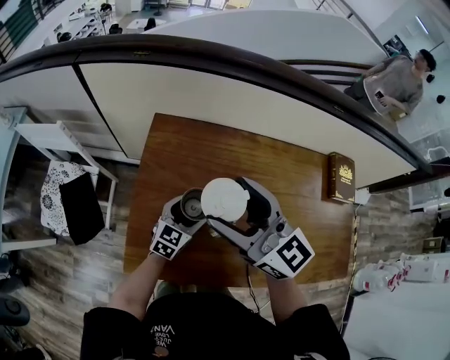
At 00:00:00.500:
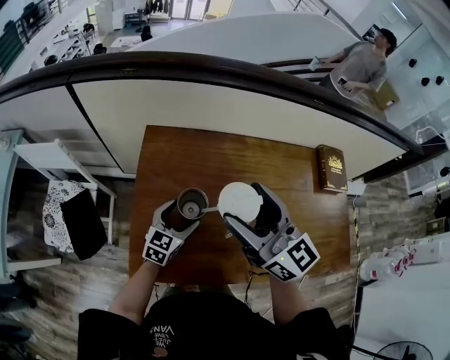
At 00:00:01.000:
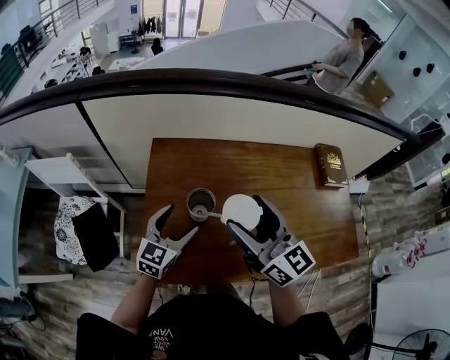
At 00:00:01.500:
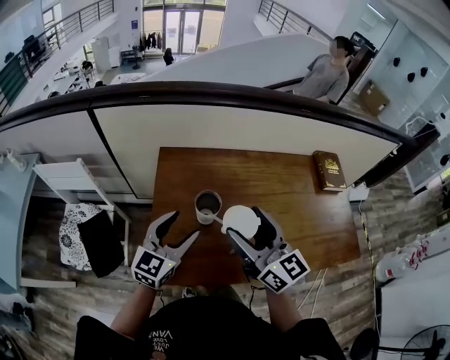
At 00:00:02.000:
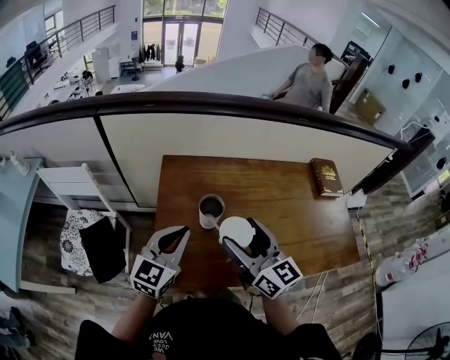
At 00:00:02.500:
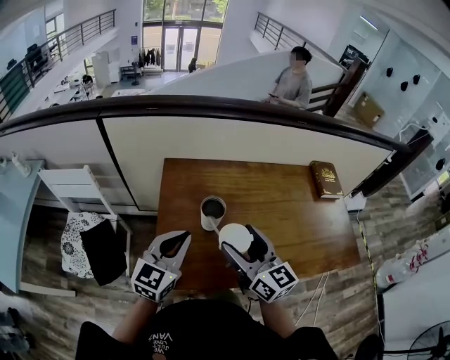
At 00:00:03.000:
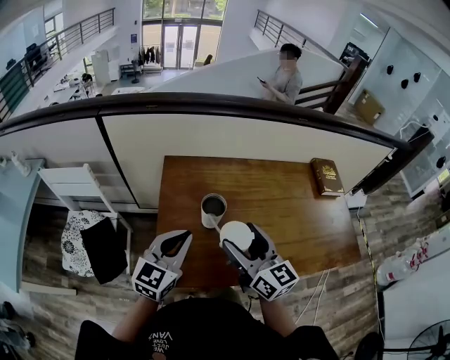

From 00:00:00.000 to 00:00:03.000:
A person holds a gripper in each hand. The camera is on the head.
From 00:00:00.000 to 00:00:01.500: The left gripper is displaced upward and backward by roughly 20 cm, while the right gripper heads backward, covering some 10 cm, and turns by about 20 degrees.
From 00:00:01.500 to 00:00:03.000: The right gripper moves roughly 5 cm. The left gripper closes its fingers.

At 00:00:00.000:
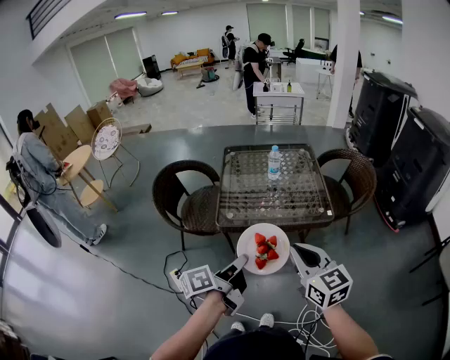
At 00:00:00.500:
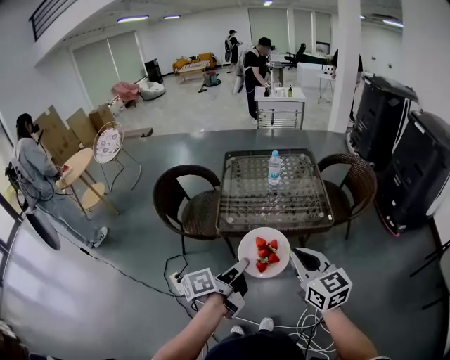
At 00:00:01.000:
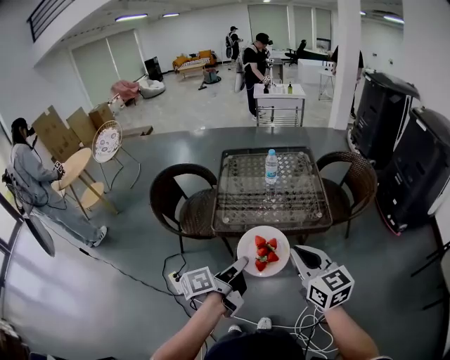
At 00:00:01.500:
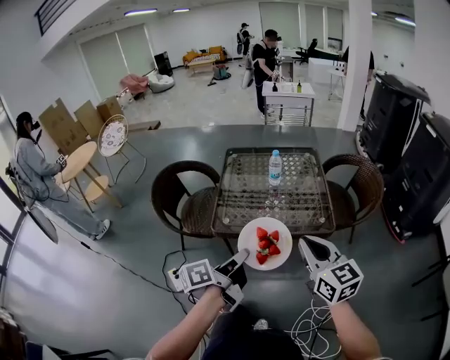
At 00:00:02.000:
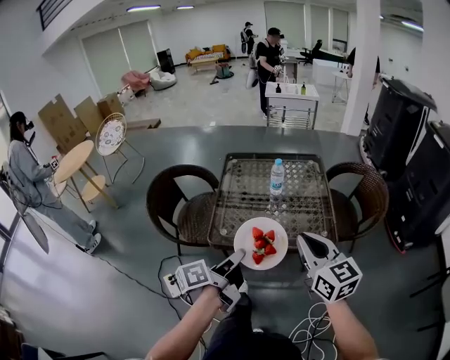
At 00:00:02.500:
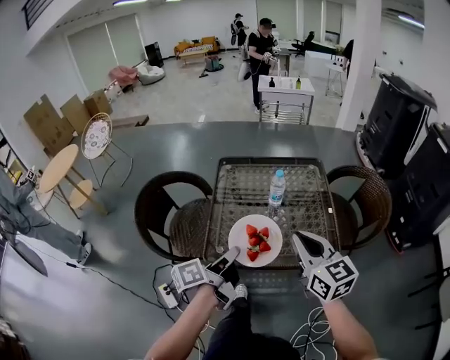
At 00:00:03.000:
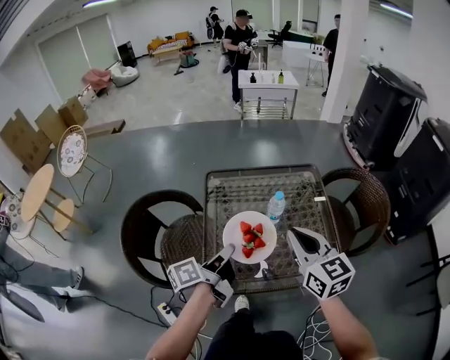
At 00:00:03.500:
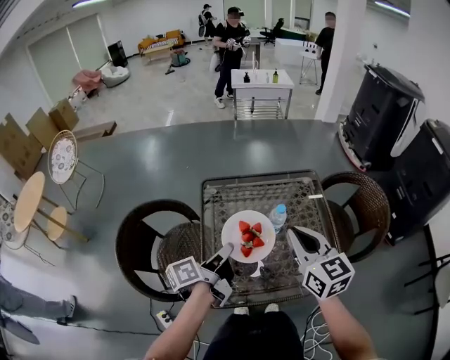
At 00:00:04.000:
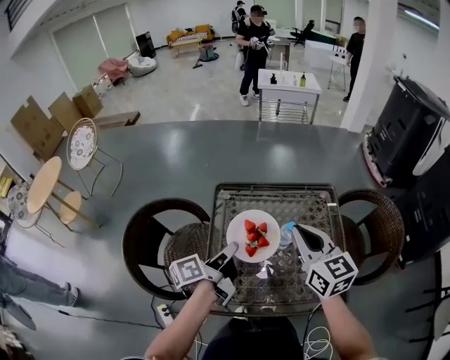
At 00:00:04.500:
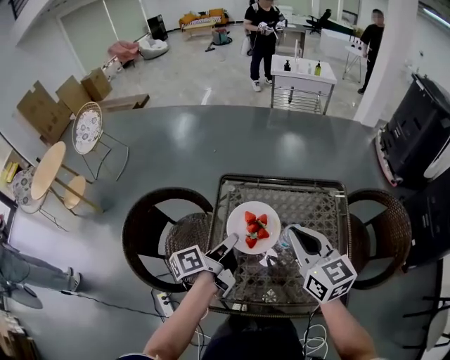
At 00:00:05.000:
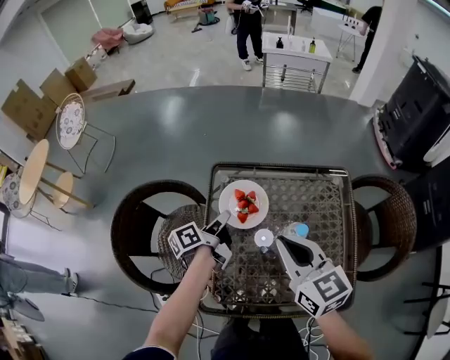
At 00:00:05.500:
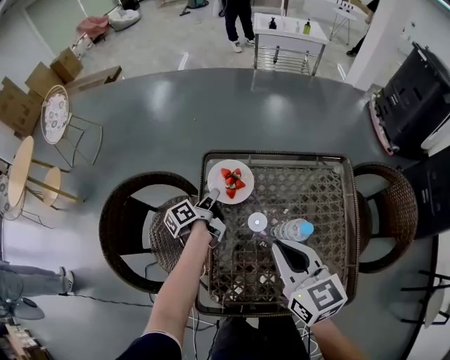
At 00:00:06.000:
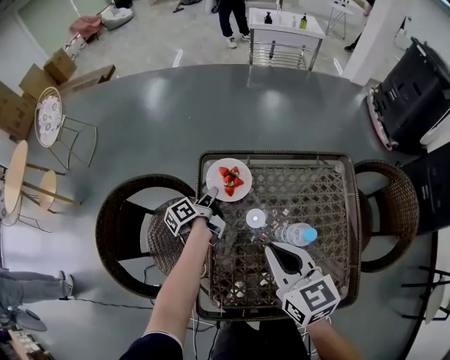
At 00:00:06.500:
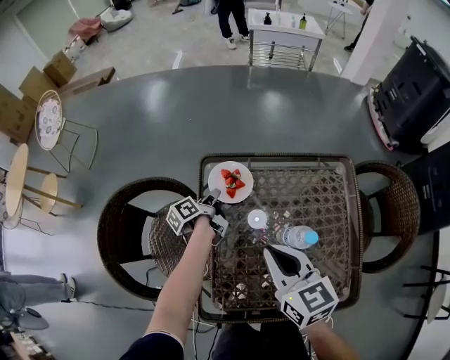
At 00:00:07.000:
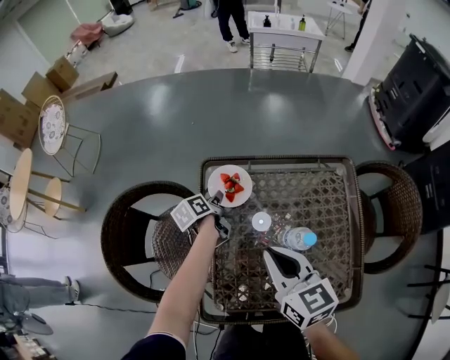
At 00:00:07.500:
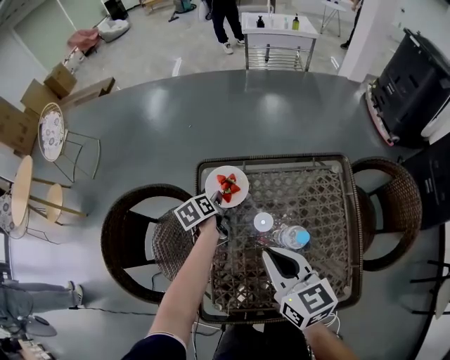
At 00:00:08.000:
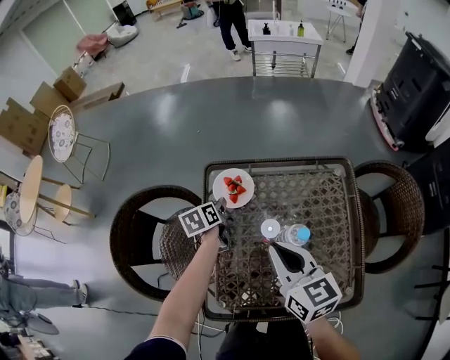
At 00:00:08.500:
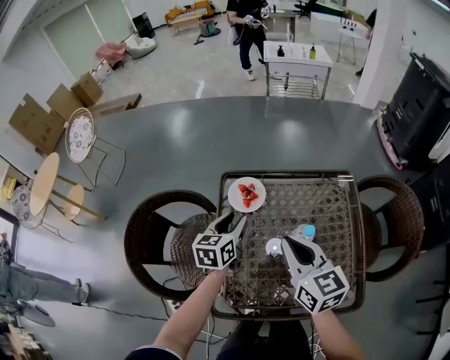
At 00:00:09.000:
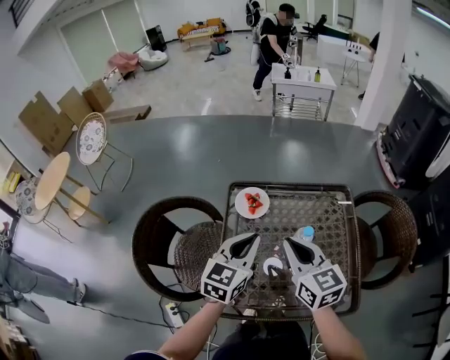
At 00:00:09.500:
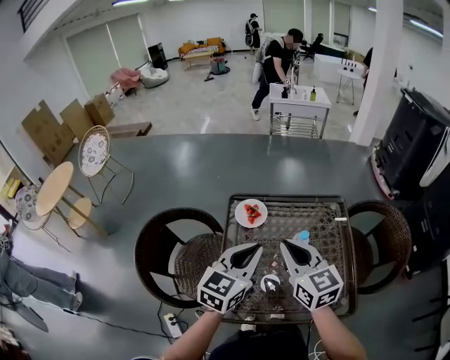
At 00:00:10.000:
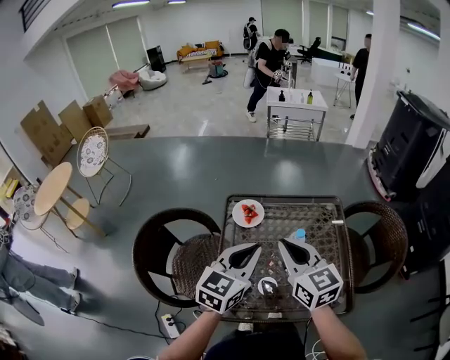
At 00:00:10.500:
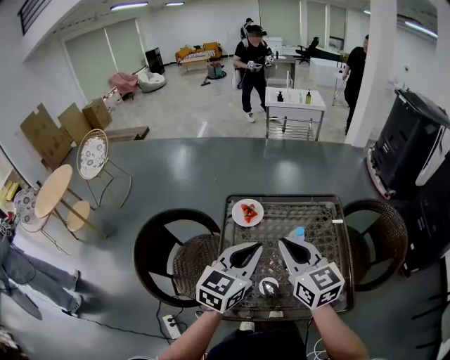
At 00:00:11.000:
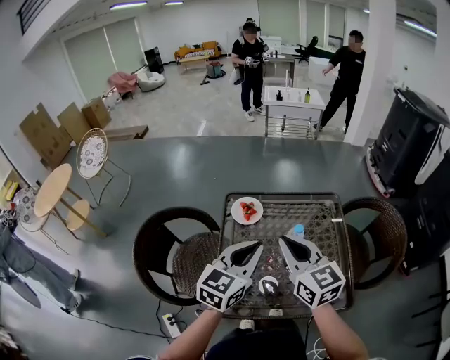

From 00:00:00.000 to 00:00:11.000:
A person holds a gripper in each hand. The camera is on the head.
From 00:00:00.000 to 00:00:02.000: The two grippers go roughly 15 cm forward.
From 00:00:02.000 to 00:00:03.500: Both grippers travel together forward, some 30 cm.
From 00:00:03.500 to 00:00:05.500: The left gripper shifts roughly 30 cm forward and downward, and turns by roughly 20 degrees; the right gripper goes about 15 cm downward, forward and to the left.
From 00:00:05.500 to 00:00:07.500: The left gripper rotates some 40 degrees, and opens up.
From 00:00:07.500 to 00:00:09.000: The left gripper travels upward and backward by about 35 cm, rolls clockwise, seen from behind, by about 50 degrees, and closes its fingers. Meanwhile the right gripper goes about 10 cm upward.
From 00:00:09.000 to 00:00:11.000: The right gripper heads upward, covering about 5 cm, while the left gripper shifts roughly 10 cm backward and upward.

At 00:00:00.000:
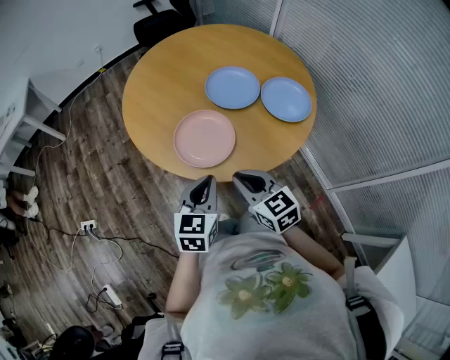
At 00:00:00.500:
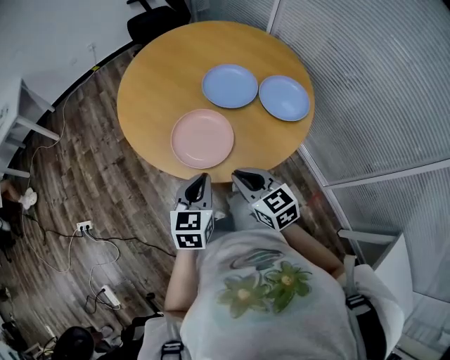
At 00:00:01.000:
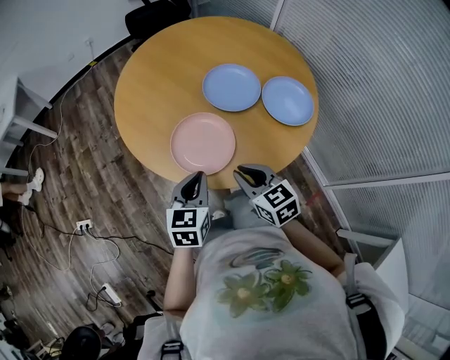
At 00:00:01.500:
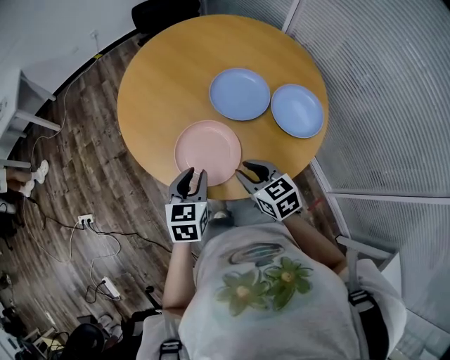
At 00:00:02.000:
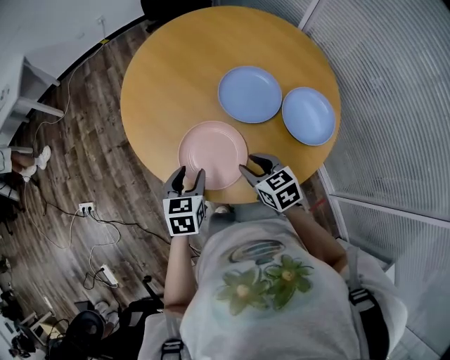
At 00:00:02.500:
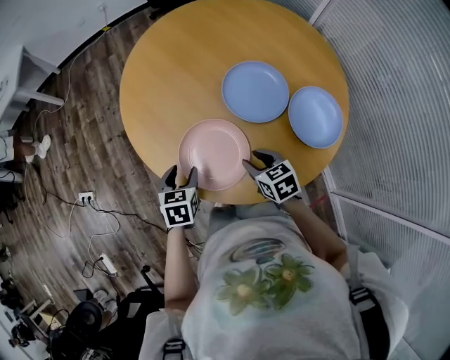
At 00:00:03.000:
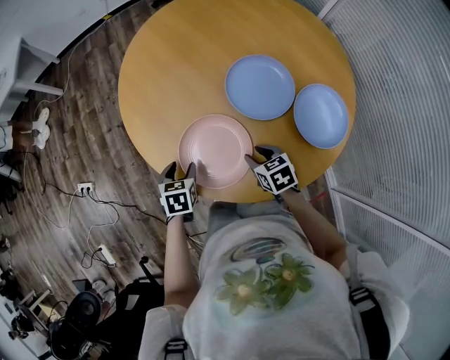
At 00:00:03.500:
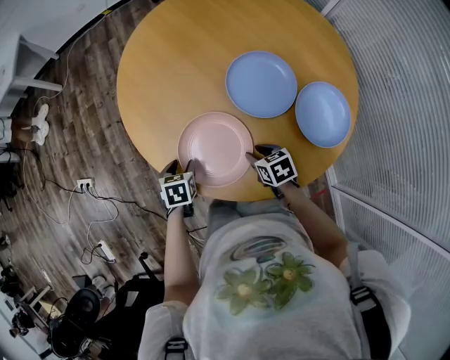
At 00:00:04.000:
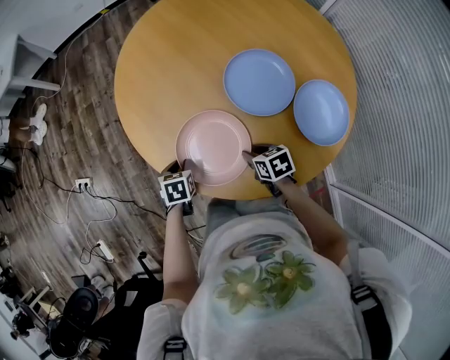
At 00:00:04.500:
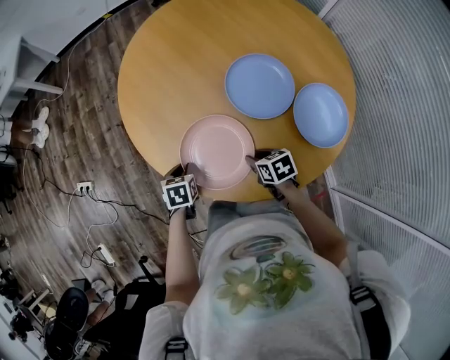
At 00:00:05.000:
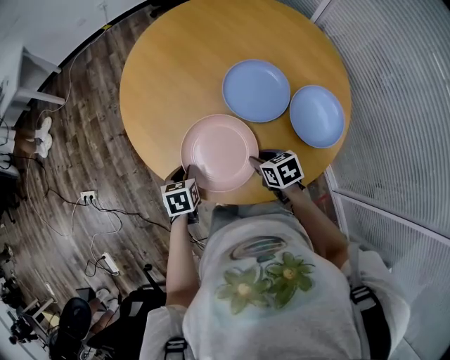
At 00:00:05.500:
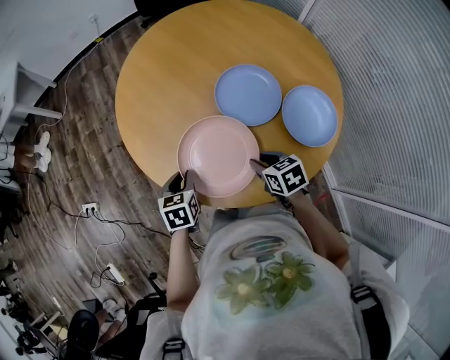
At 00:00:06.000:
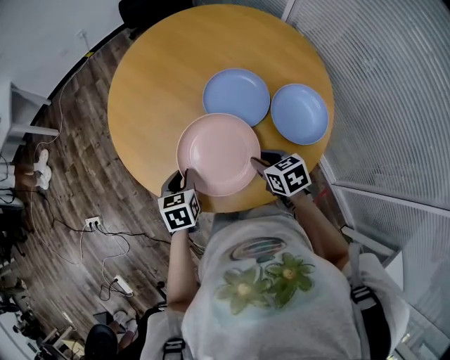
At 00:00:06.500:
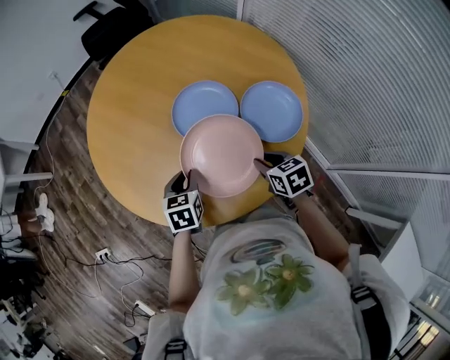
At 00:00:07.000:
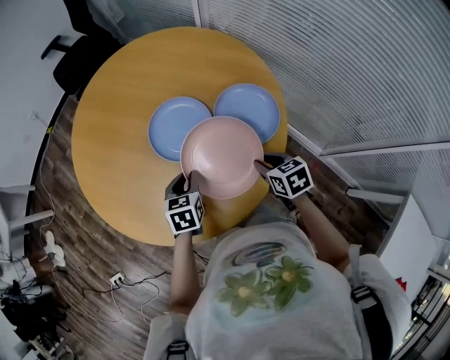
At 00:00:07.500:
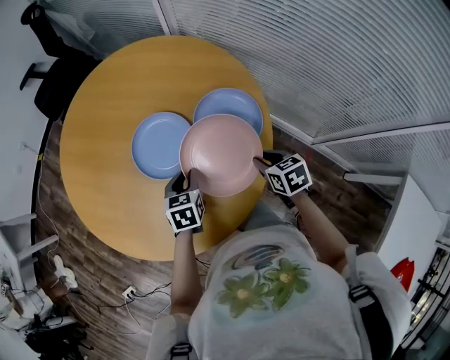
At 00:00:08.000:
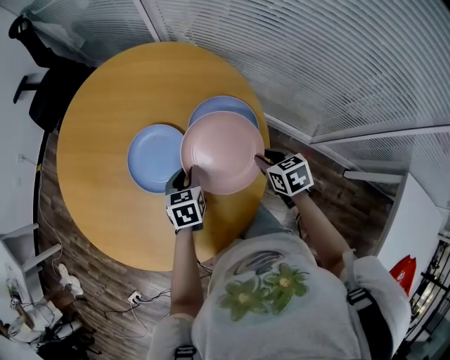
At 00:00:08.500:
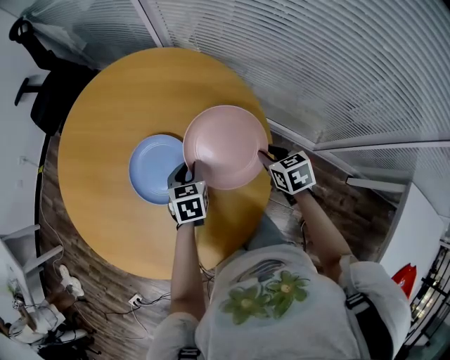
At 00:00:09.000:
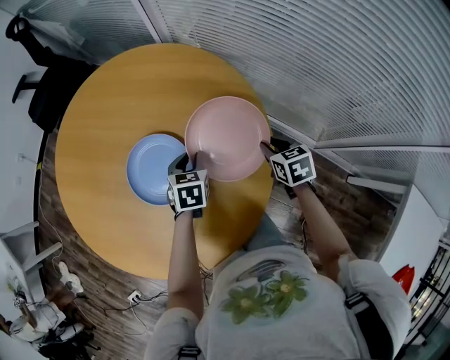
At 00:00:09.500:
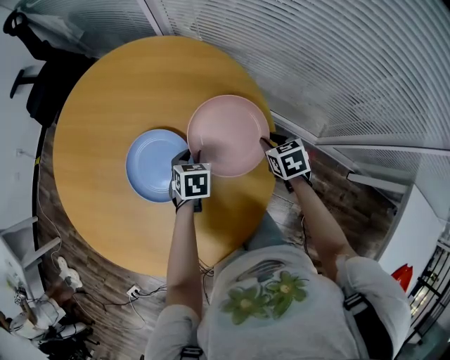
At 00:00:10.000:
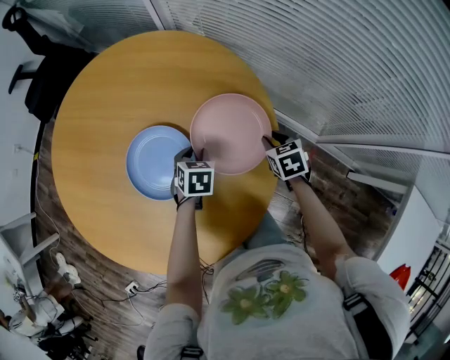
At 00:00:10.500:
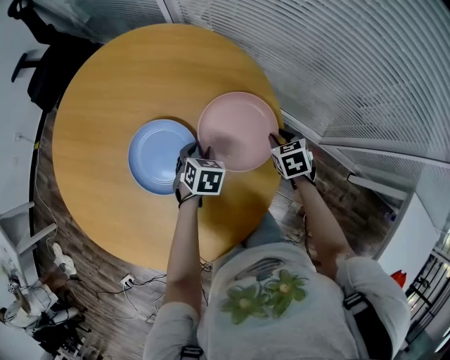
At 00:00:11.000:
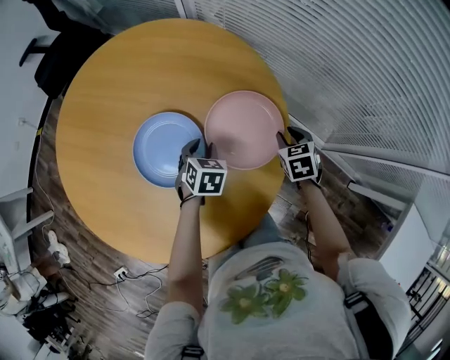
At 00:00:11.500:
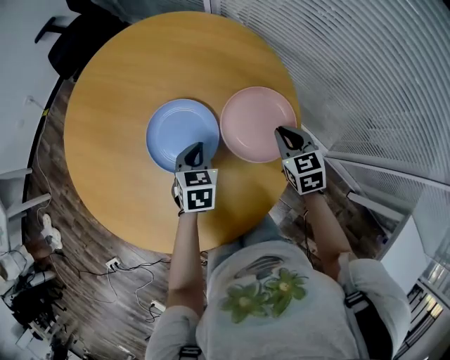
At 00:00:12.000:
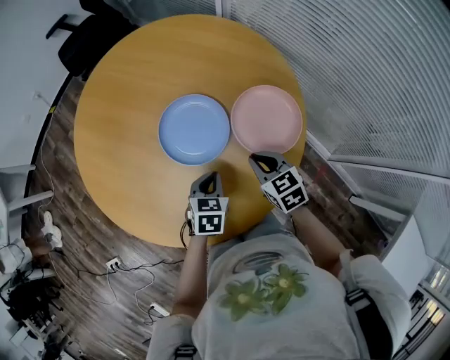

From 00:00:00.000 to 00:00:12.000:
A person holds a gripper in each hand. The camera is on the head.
From 00:00:00.000 to 00:00:02.000: Both grippers travel together forward, some 20 cm. The right gripper opens its fingers, while the left gripper changes its angle by roughly 20 degrees, and opens its fingers.
From 00:00:02.000 to 00:00:04.000: Both grippers travel together downward, some 15 cm. The left gripper changes its angle by roughly 30 degrees, and closes; the right gripper turns by roughly 20 degrees.
From 00:00:04.000 to 00:00:06.000: The left gripper is displaced upward and to the right by some 15 cm; the right gripper shifts about 10 cm upward.
From 00:00:06.000 to 00:00:08.000: The right gripper ends up about 30 cm from where it was, and changes its angle by about 40 degrees. The left gripper ends up about 40 cm from where it was, and swivels approximately 30 degrees.
From 00:00:08.000 to 00:00:10.000: The grippers both shift forward and downward by some 15 cm.
From 00:00:10.000 to 00:00:12.000: The left gripper is displaced backward and to the left by roughly 20 cm, and closes. The right gripper shifts some 25 cm to the left, backward and upward, and changes its angle by roughly 30 degrees.
